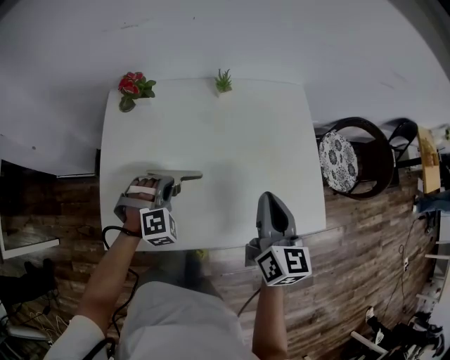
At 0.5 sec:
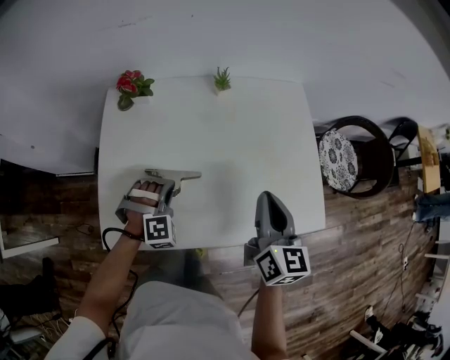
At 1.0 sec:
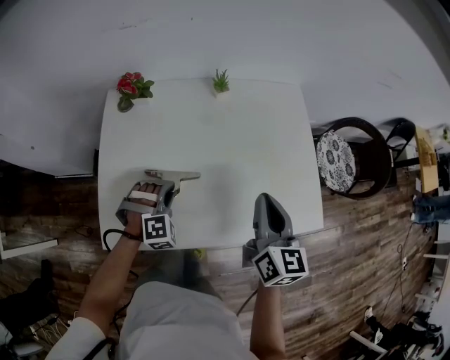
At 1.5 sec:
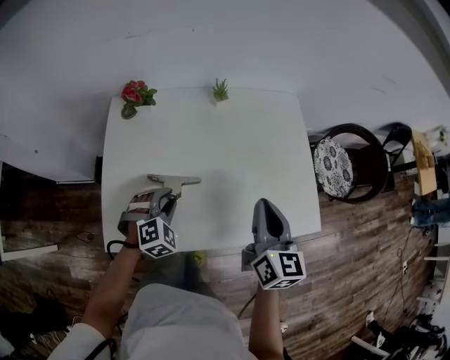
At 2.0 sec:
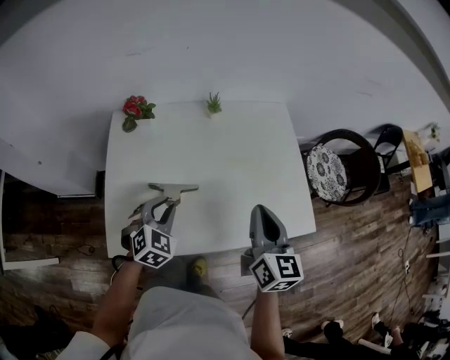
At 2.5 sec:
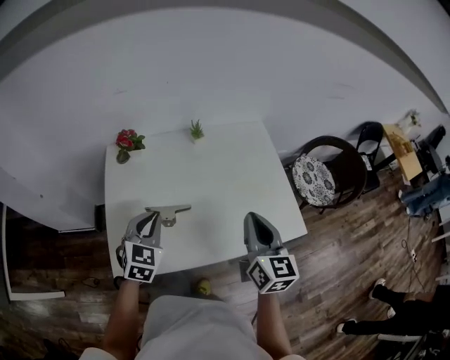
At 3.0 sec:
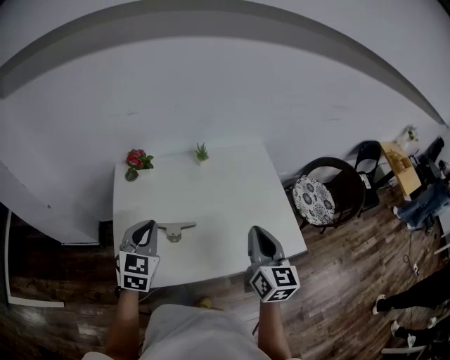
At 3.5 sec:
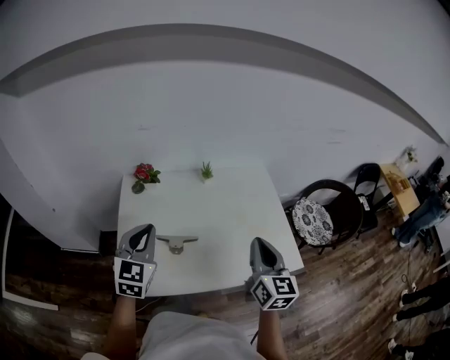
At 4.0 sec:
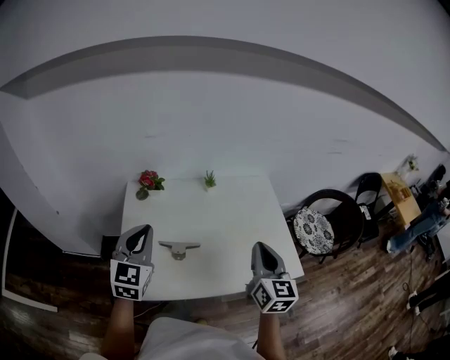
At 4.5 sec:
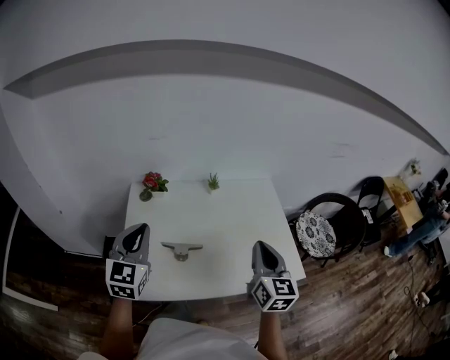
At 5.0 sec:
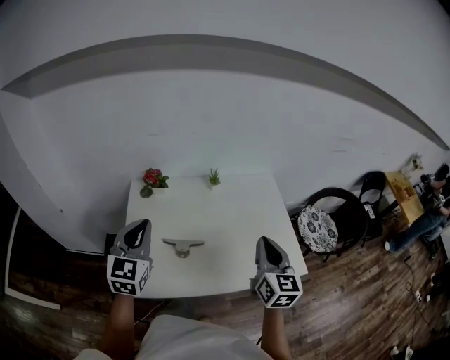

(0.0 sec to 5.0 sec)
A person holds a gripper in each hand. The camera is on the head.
0.0 sec - 2.5 sec: The right gripper shifts approximately 10 cm upward and backward; the left gripper travels upward by approximately 15 cm, twists about 50 degrees counterclockwise, seen from behind, and opens, then closes once more.
2.5 sec - 5.0 sec: The left gripper shifts about 15 cm upward and to the left, and turns by approximately 30 degrees, while the right gripper heads upward, covering some 5 cm.

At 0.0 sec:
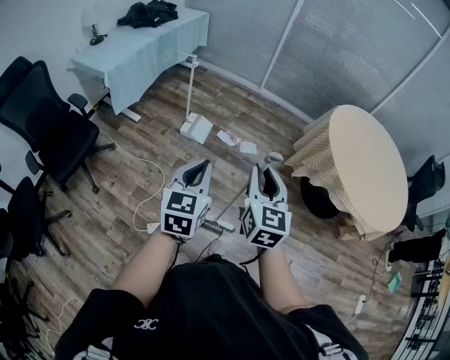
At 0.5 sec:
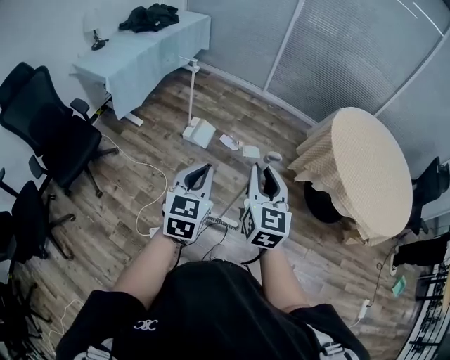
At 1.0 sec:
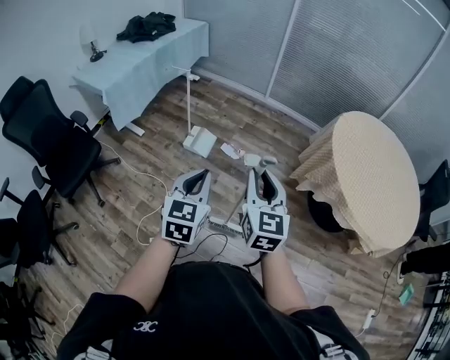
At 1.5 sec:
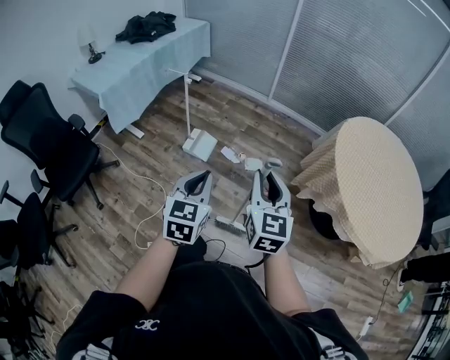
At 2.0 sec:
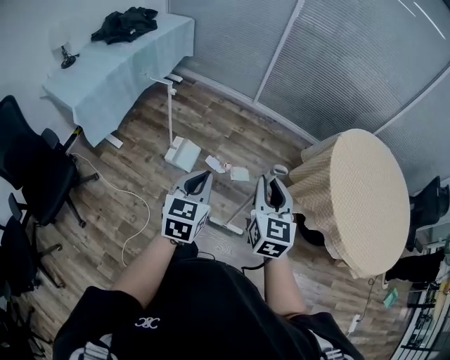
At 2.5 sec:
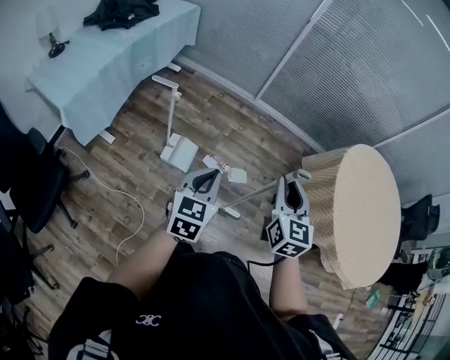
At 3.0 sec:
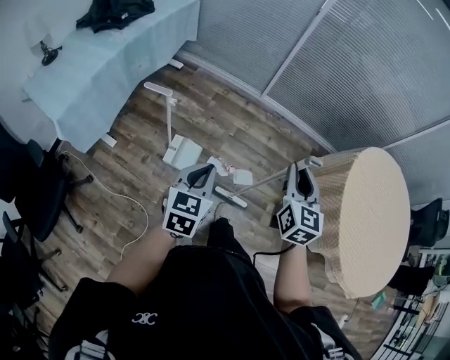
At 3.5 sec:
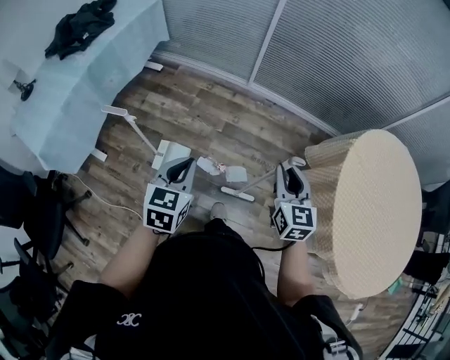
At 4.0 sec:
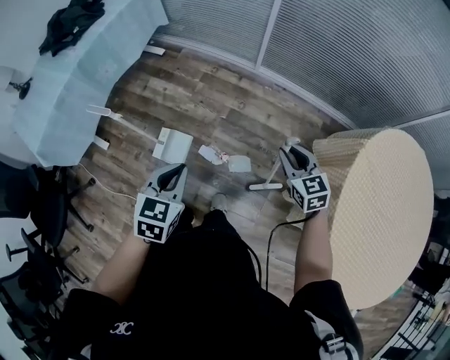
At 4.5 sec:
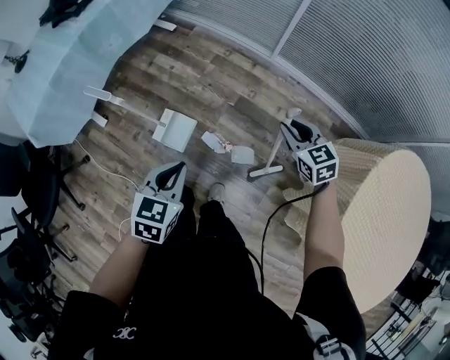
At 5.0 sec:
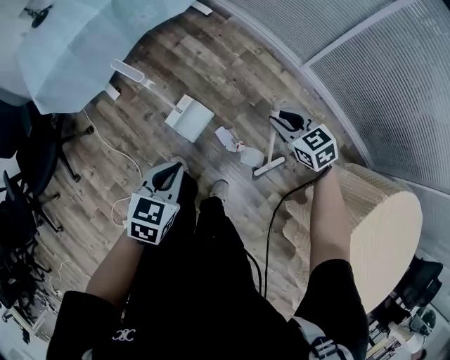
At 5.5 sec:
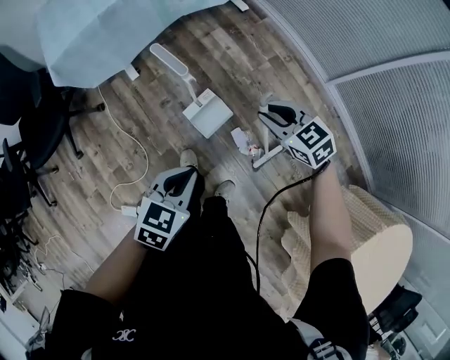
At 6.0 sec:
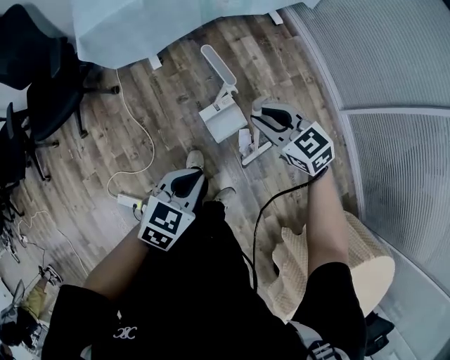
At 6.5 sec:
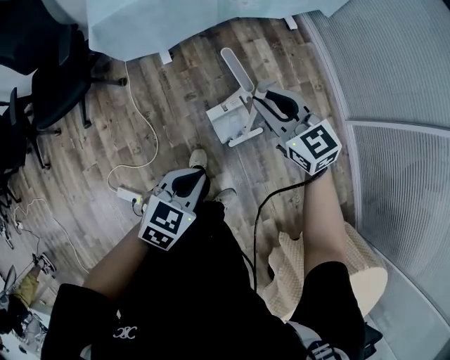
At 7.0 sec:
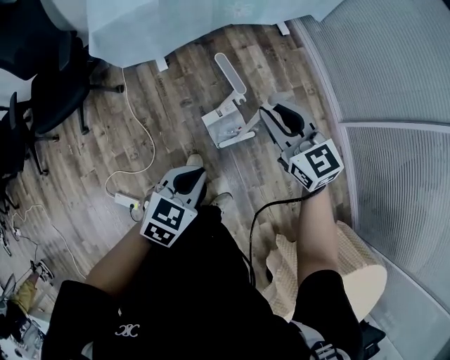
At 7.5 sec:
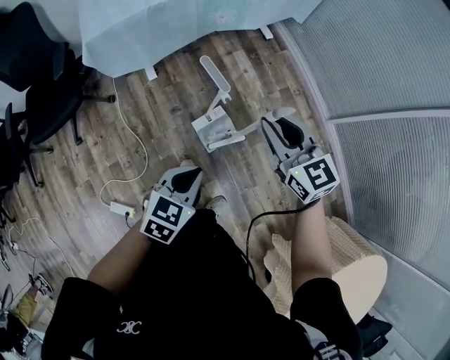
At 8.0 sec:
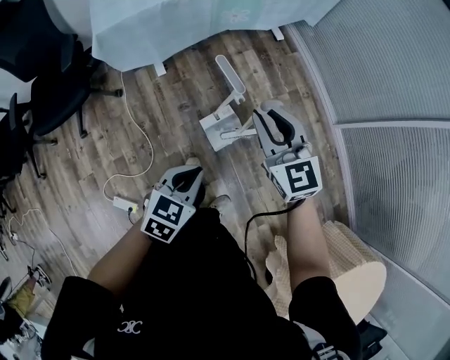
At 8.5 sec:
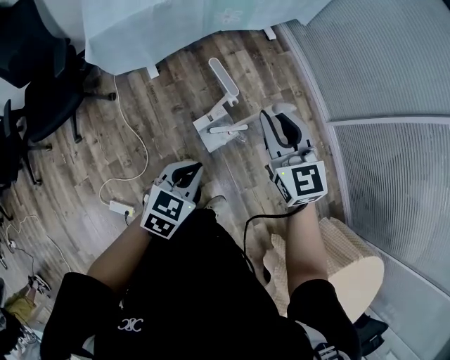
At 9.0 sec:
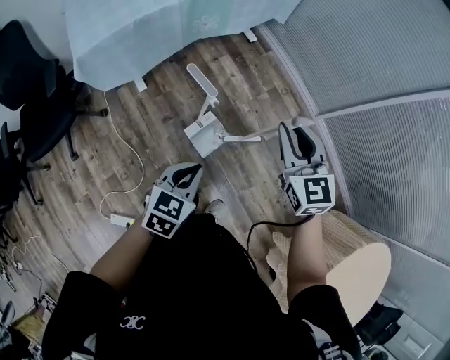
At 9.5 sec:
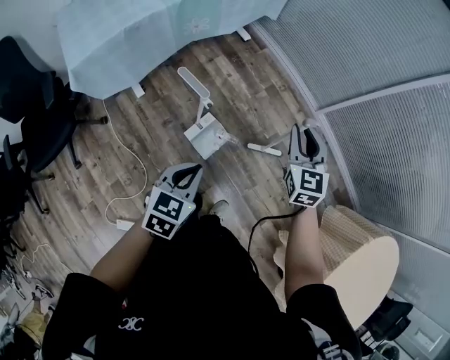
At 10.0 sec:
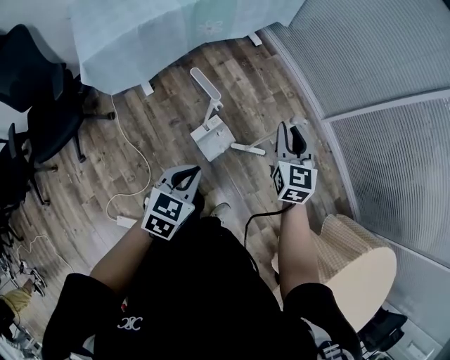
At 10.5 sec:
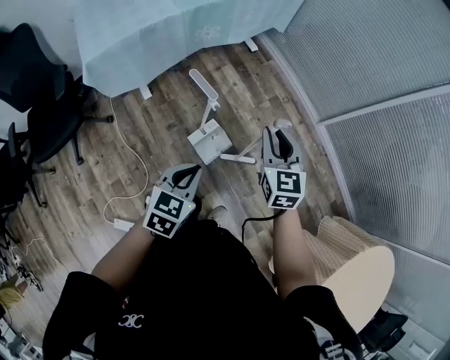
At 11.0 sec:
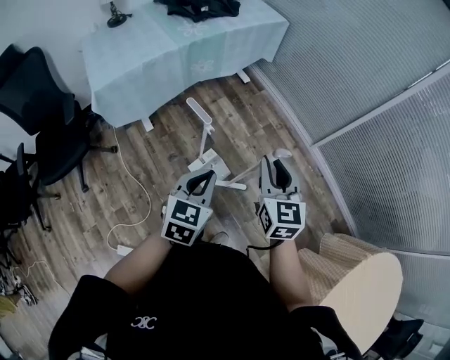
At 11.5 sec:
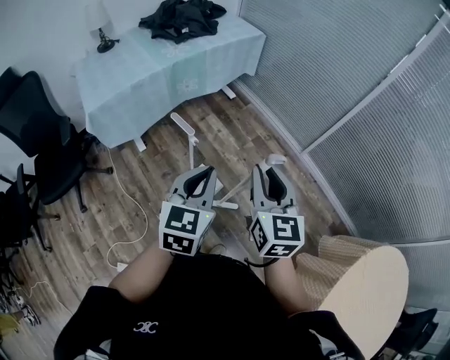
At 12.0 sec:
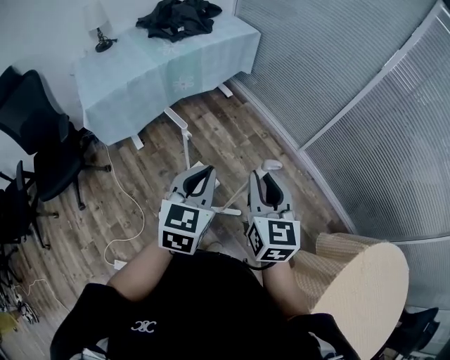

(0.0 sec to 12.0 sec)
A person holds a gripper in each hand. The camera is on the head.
0.0 sec - 2.0 sec: Both grippers move forward, about 30 cm.
2.0 sec - 4.0 sec: The left gripper moves forward, approximately 35 cm; the right gripper heads forward and downward, covering about 50 cm, and turns by some 30 degrees.
4.0 sec - 6.0 sec: The right gripper ends up roughly 50 cm from where it was, and changes its angle by some 70 degrees, while the left gripper moves approximately 25 cm, and rotates about 30 degrees.
6.0 sec - 8.0 sec: The right gripper travels upward by approximately 10 cm, and swivels some 30 degrees.
8.0 sec - 10.0 sec: The right gripper goes approximately 15 cm to the right, and rotates roughly 30 degrees.
10.0 sec - 12.0 sec: The left gripper moves upward and to the right, approximately 20 cm, and changes its angle by some 20 degrees. Meanwhile the right gripper travels backward and upward by approximately 25 cm.

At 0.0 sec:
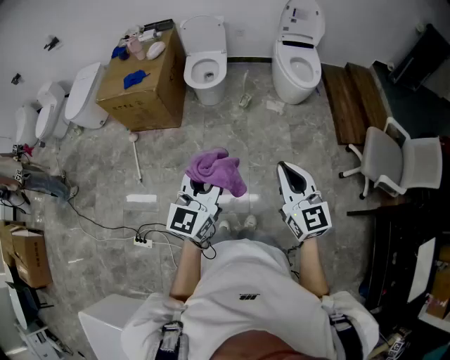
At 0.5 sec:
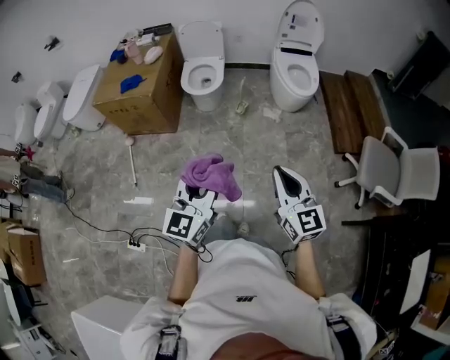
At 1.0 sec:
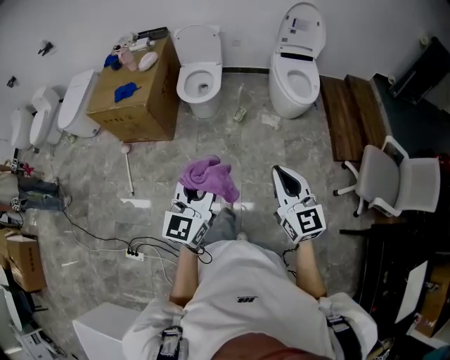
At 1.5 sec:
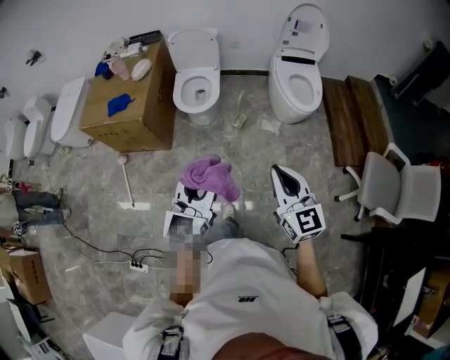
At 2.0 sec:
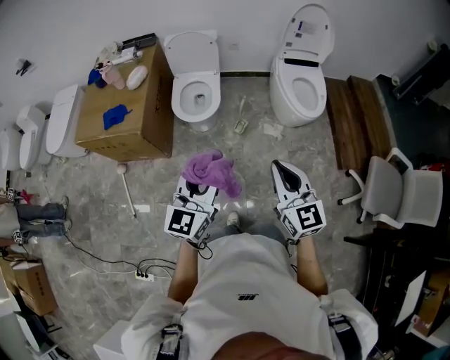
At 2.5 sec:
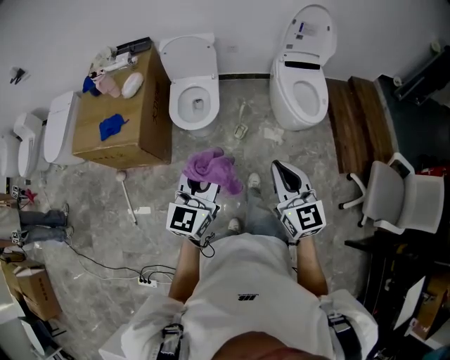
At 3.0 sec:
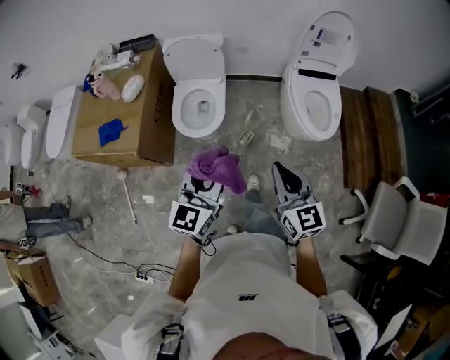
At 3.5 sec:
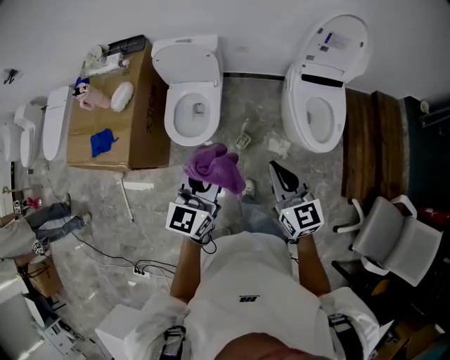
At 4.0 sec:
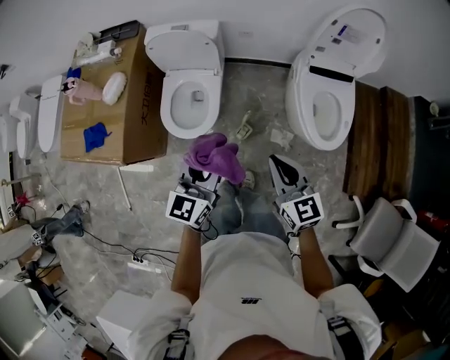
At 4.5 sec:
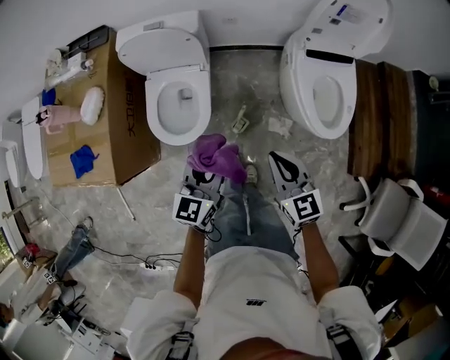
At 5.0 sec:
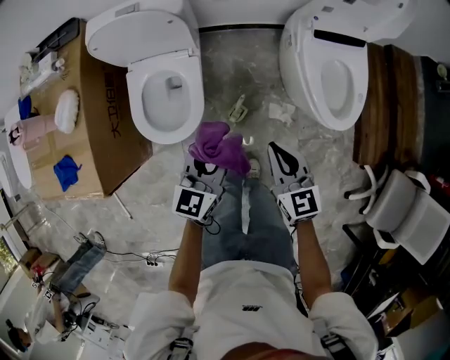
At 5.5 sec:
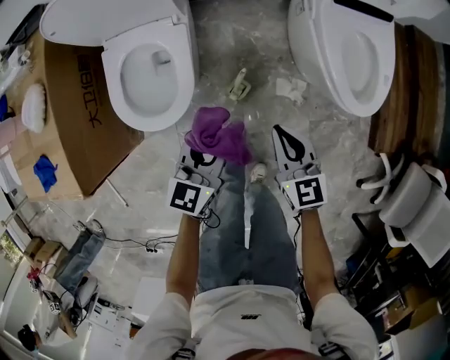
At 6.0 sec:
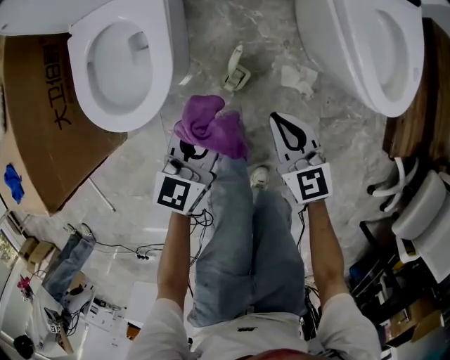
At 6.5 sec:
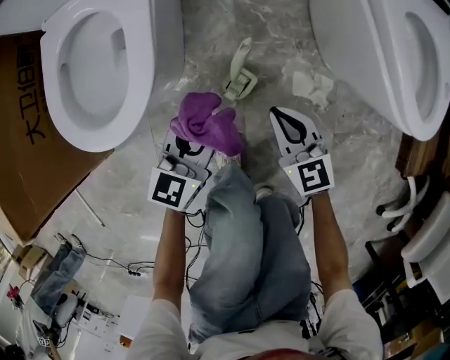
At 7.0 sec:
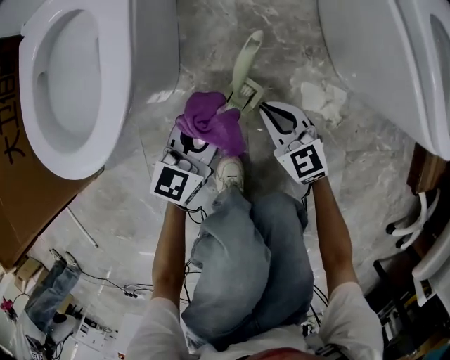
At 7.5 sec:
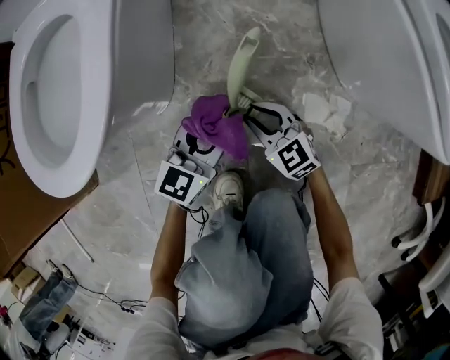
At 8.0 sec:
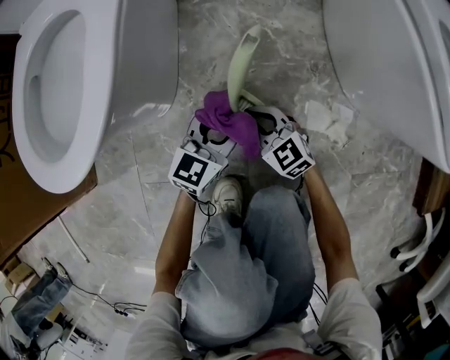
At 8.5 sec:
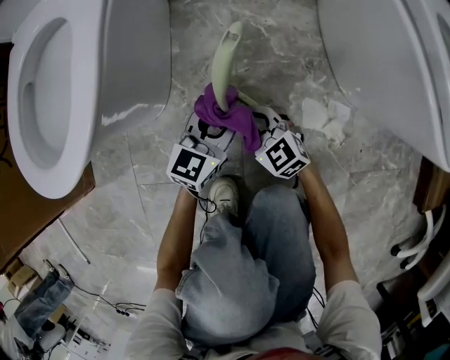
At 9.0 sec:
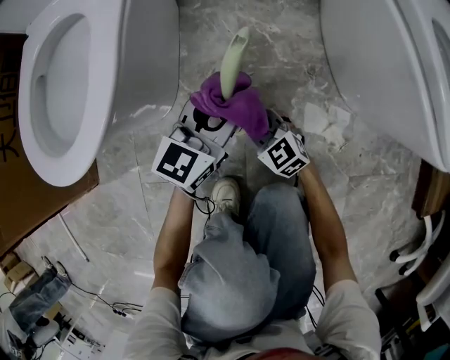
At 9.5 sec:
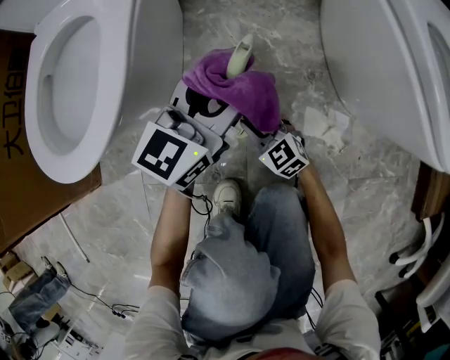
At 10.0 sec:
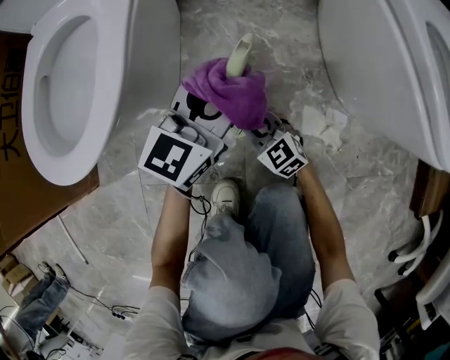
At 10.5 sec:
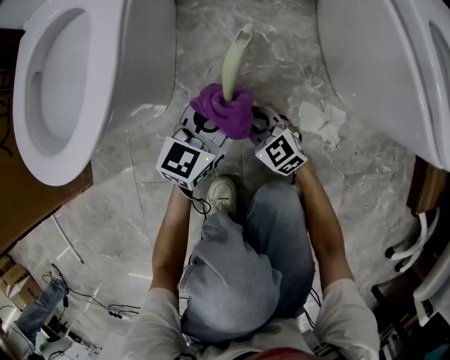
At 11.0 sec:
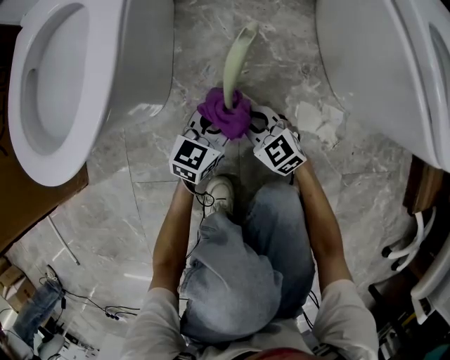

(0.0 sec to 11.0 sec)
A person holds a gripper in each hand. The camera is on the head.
0.0 sec - 2.0 sec: The grippers both shift forward by roughly 35 cm.
2.0 sec - 3.5 sec: The two grippers go about 35 cm forward.
3.5 sec - 5.5 sec: The left gripper moves downward and forward, some 50 cm, and changes its angle by about 20 degrees. Meanwhile the right gripper is displaced downward by roughly 40 cm.
5.5 sec - 7.5 sec: Both grippers move downward, some 50 cm. The right gripper rotates about 30 degrees, and opens.
7.5 sec - 9.0 sec: The left gripper heads upward, covering approximately 5 cm.
9.0 sec - 11.0 sec: The left gripper is displaced downward by some 10 cm.
